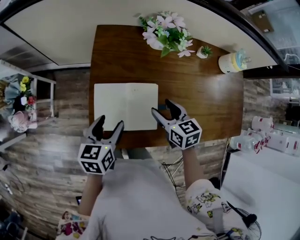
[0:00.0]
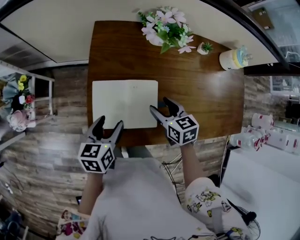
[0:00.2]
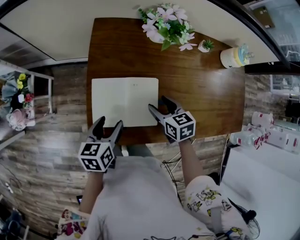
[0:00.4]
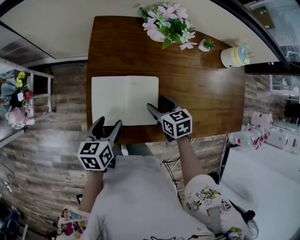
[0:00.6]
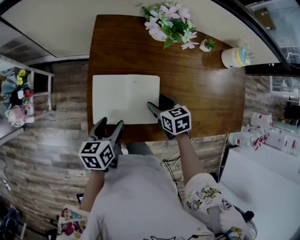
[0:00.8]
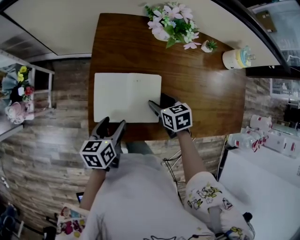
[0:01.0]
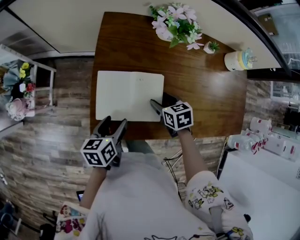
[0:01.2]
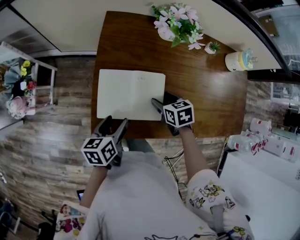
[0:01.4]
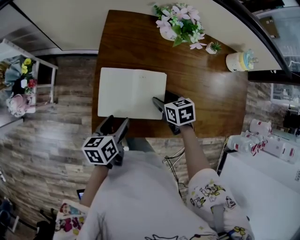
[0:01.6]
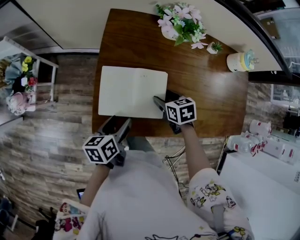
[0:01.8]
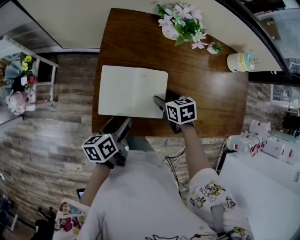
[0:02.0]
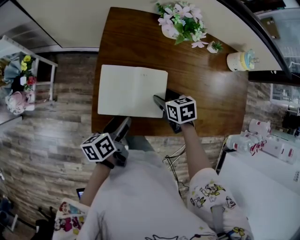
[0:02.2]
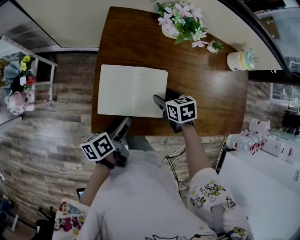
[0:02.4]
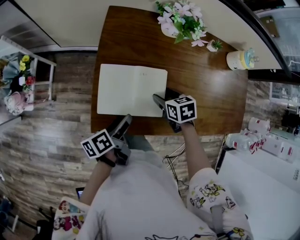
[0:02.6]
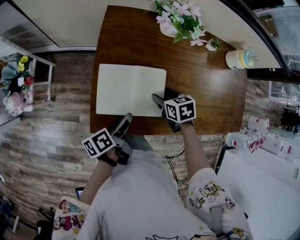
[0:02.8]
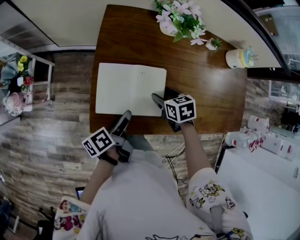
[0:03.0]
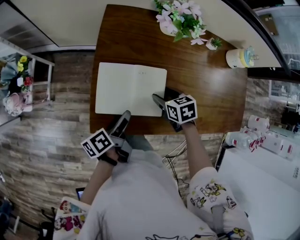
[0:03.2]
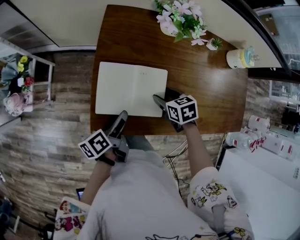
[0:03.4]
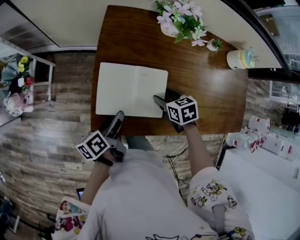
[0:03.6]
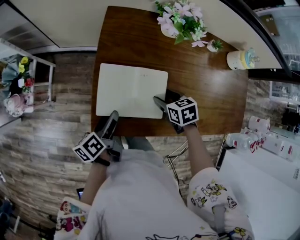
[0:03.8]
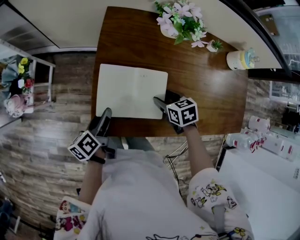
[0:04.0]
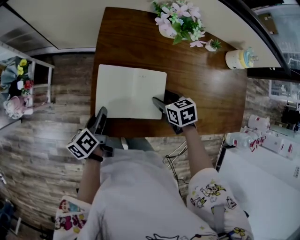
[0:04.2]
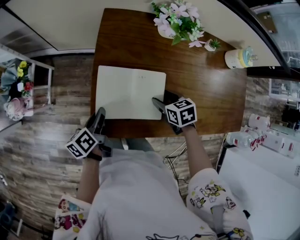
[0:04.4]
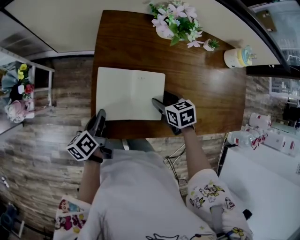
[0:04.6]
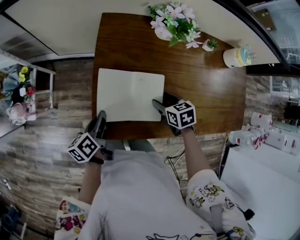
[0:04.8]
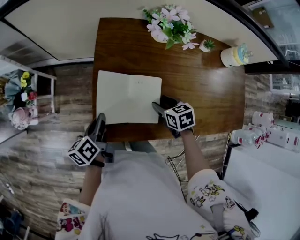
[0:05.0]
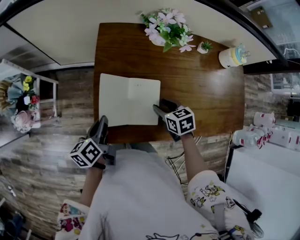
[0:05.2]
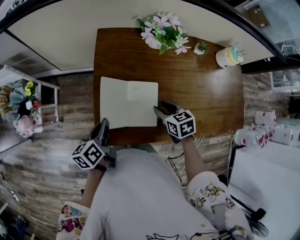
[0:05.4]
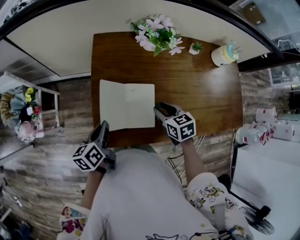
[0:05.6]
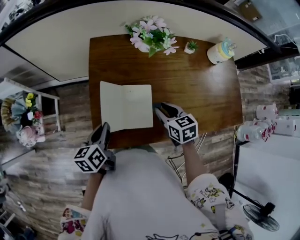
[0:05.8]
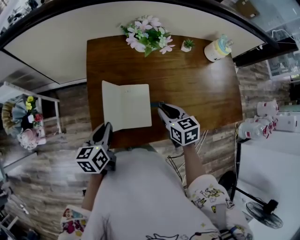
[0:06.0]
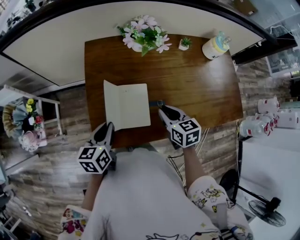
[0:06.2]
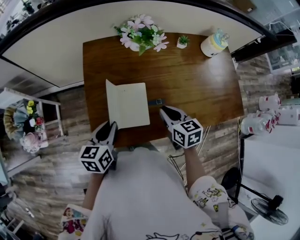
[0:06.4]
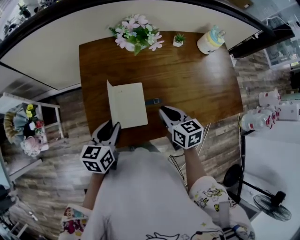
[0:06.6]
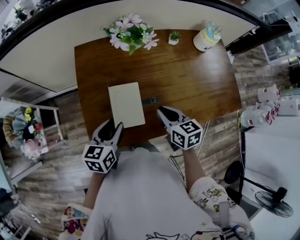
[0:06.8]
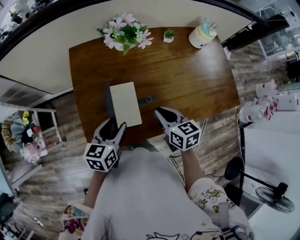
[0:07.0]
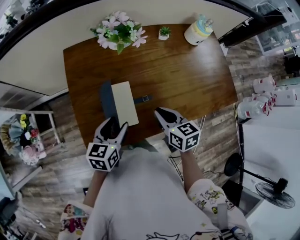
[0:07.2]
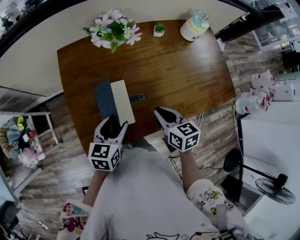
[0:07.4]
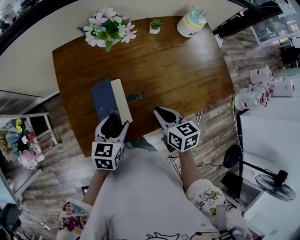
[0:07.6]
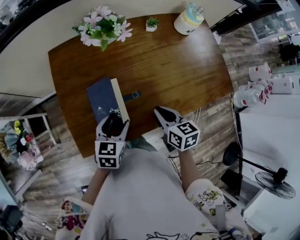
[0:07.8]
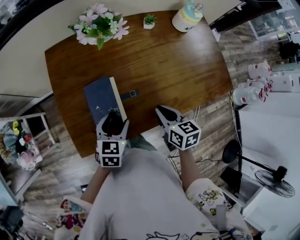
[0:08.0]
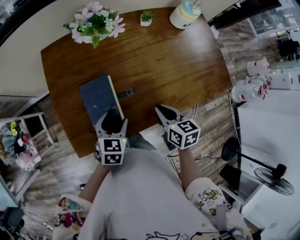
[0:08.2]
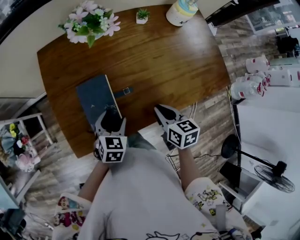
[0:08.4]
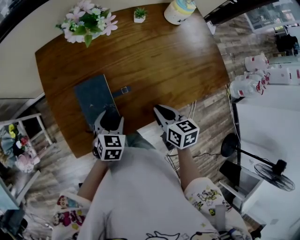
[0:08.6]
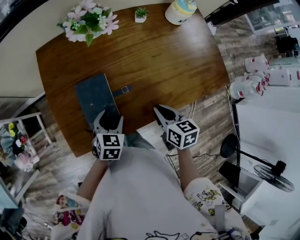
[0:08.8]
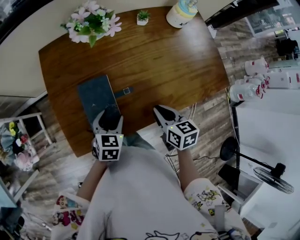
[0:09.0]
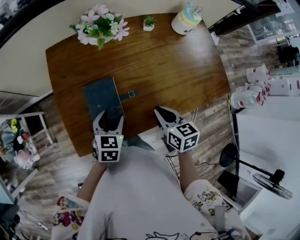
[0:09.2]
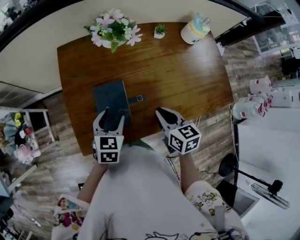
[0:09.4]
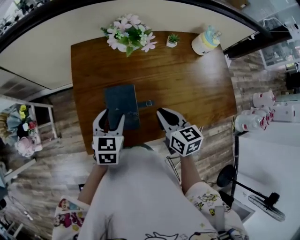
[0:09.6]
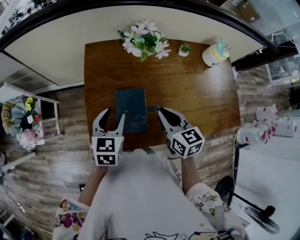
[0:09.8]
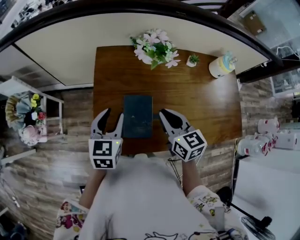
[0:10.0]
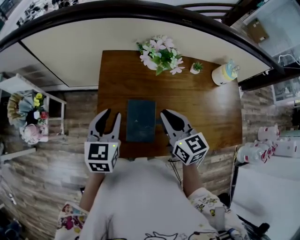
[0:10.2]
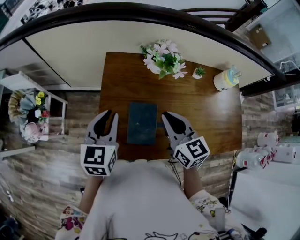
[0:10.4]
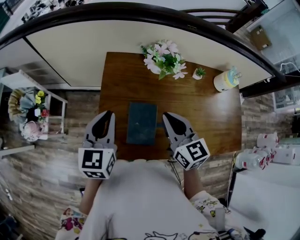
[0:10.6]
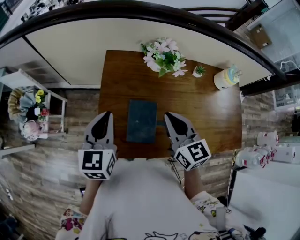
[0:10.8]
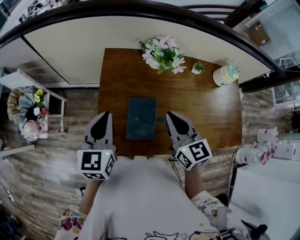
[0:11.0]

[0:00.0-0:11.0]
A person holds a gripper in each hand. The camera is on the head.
0:00.0 to 0:01.6: The left gripper travels backward and downward by some 10 cm, while the right gripper is displaced downward by roughly 10 cm, and rotates some 20 degrees.
0:01.6 to 0:03.2: The left gripper rotates about 30 degrees.
0:03.2 to 0:04.8: The left gripper shifts about 10 cm to the left, changes its angle by approximately 20 degrees, and closes its fingers.
0:04.8 to 0:06.2: The right gripper is displaced upward by approximately 10 cm, turns by approximately 20 degrees, and closes up. The left gripper heads upward and to the right, covering about 10 cm, and changes its angle by roughly 40 degrees.
0:06.2 to 0:07.8: The right gripper goes approximately 10 cm to the right. Meanwhile the left gripper moves to the right, some 15 cm, rotates roughly 30 degrees, and opens.
0:07.8 to 0:09.4: There are only small adjustments of the grippers.
0:09.4 to 0:11.0: The left gripper travels upward and to the left by approximately 20 cm, turns by approximately 30 degrees, and closes up. The right gripper heads upward, to the left and forward, covering about 20 cm, and rotates roughly 30 degrees.

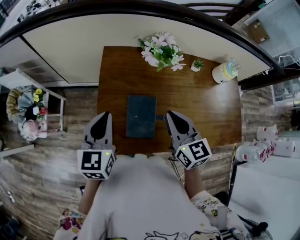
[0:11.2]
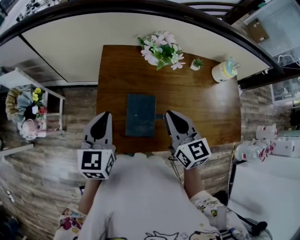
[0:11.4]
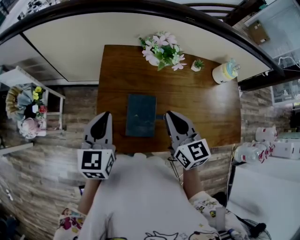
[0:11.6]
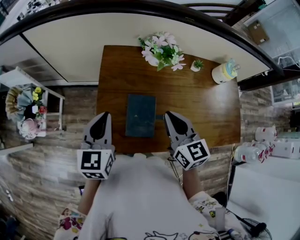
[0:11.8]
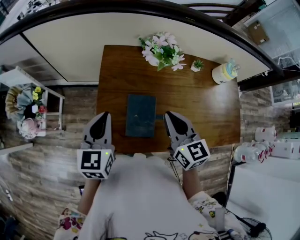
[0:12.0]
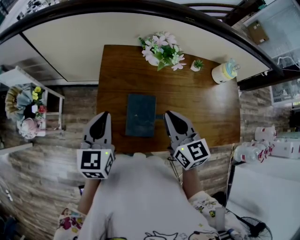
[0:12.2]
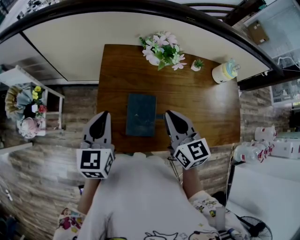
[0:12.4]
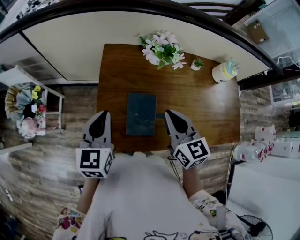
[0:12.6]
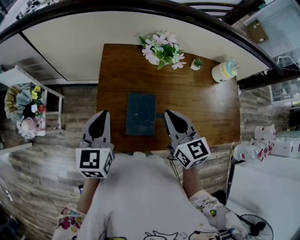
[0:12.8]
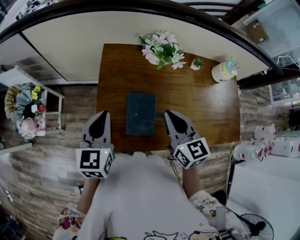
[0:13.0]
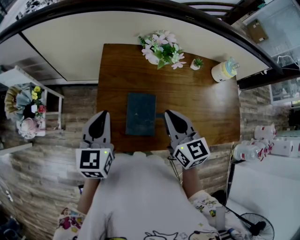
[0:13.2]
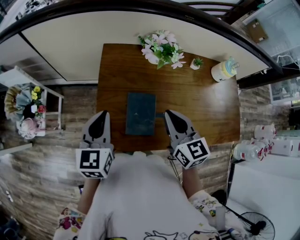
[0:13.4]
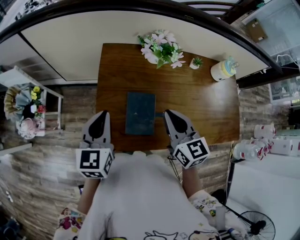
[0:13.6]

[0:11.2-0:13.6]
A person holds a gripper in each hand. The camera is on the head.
0:11.2 to 0:13.6: Both grippers stay about where they are.

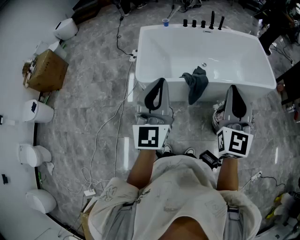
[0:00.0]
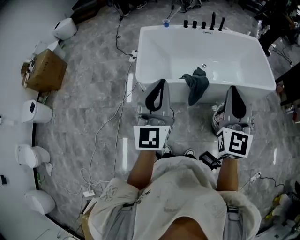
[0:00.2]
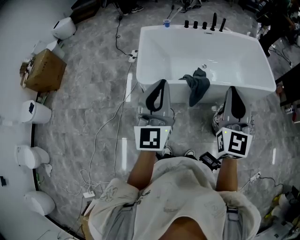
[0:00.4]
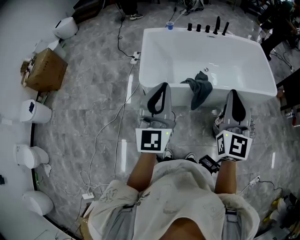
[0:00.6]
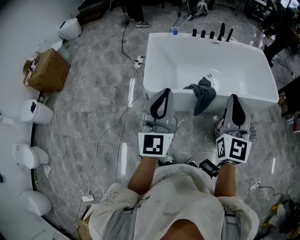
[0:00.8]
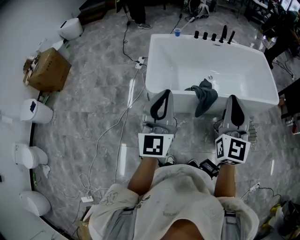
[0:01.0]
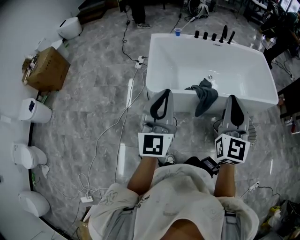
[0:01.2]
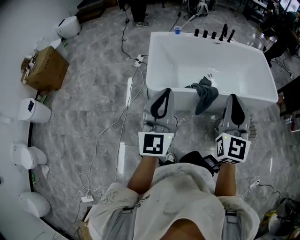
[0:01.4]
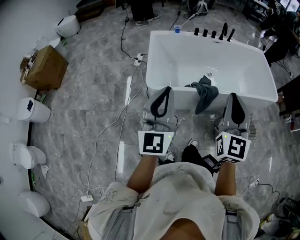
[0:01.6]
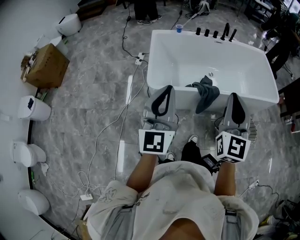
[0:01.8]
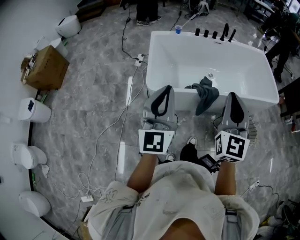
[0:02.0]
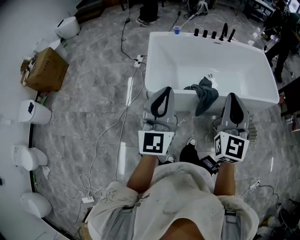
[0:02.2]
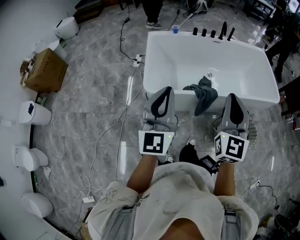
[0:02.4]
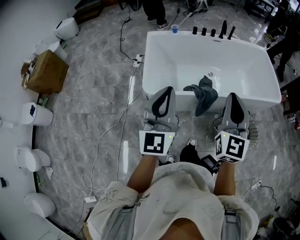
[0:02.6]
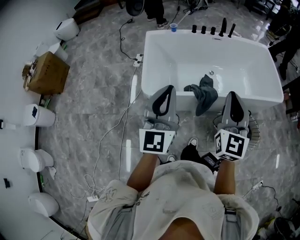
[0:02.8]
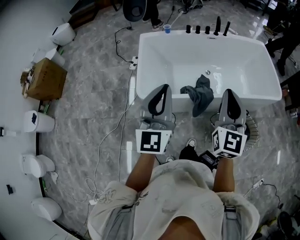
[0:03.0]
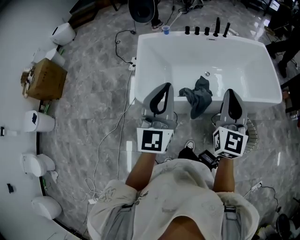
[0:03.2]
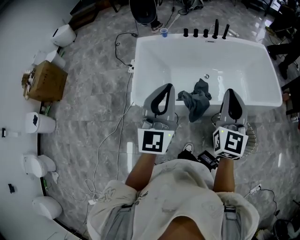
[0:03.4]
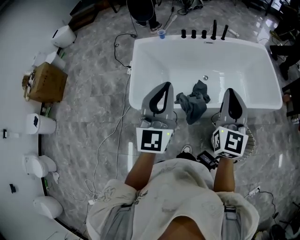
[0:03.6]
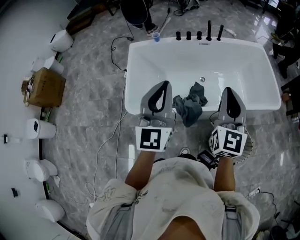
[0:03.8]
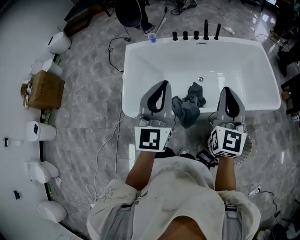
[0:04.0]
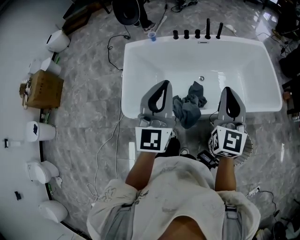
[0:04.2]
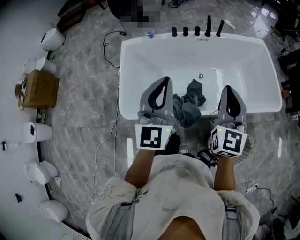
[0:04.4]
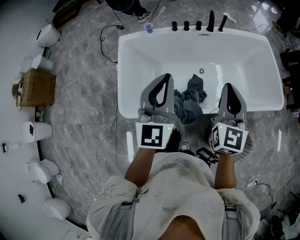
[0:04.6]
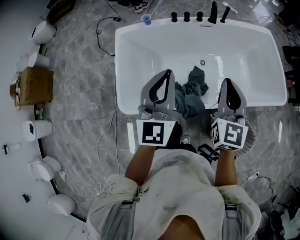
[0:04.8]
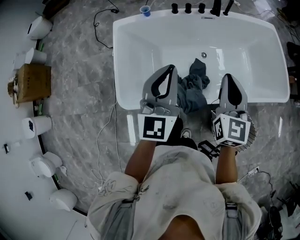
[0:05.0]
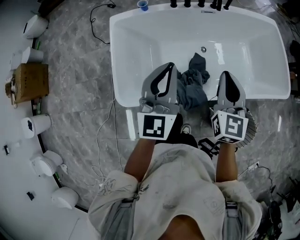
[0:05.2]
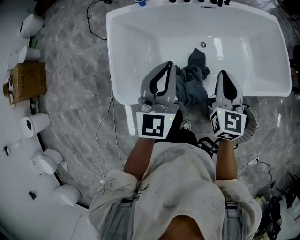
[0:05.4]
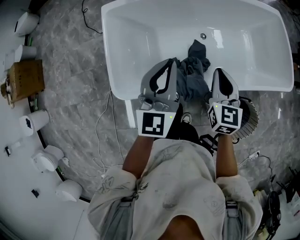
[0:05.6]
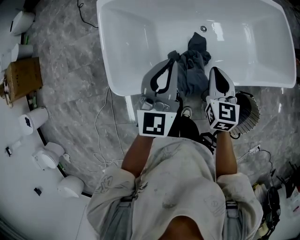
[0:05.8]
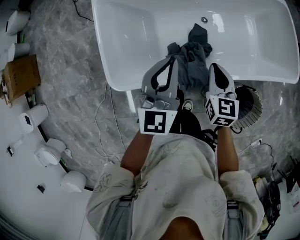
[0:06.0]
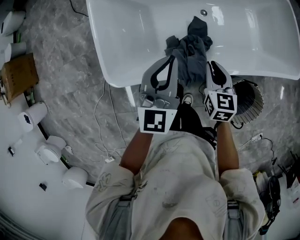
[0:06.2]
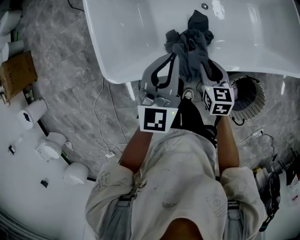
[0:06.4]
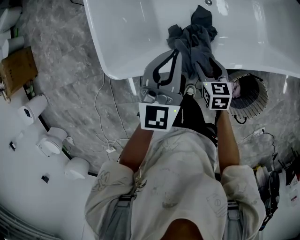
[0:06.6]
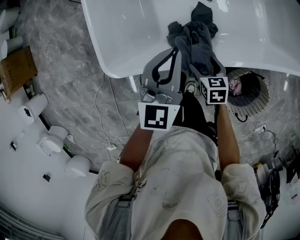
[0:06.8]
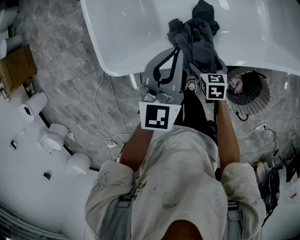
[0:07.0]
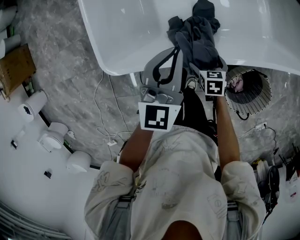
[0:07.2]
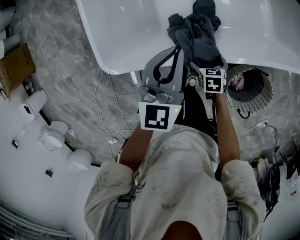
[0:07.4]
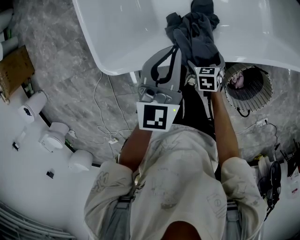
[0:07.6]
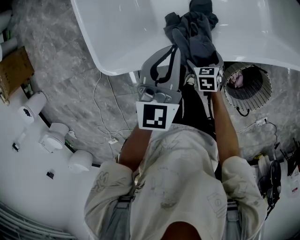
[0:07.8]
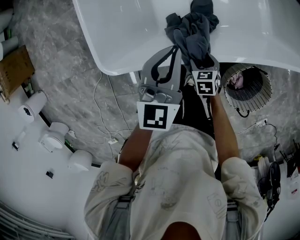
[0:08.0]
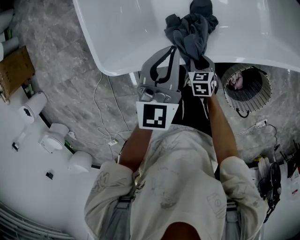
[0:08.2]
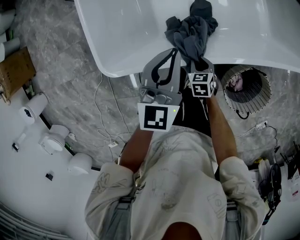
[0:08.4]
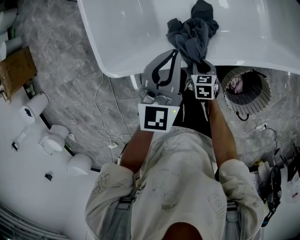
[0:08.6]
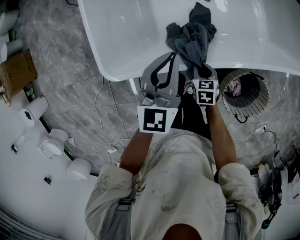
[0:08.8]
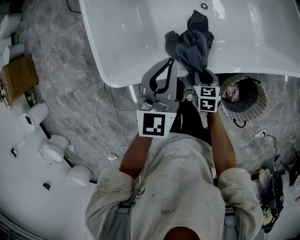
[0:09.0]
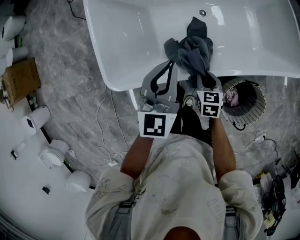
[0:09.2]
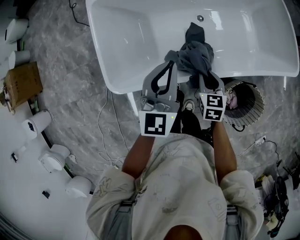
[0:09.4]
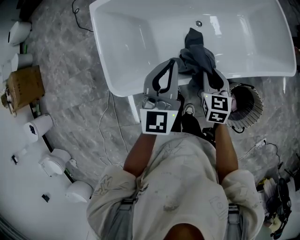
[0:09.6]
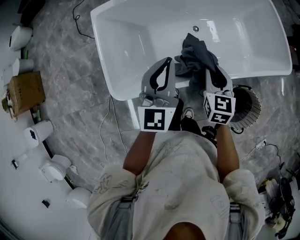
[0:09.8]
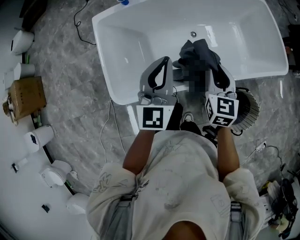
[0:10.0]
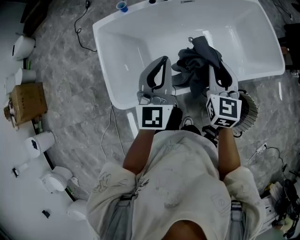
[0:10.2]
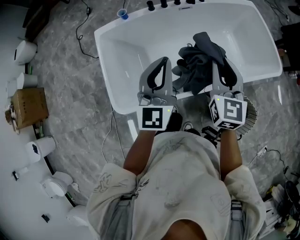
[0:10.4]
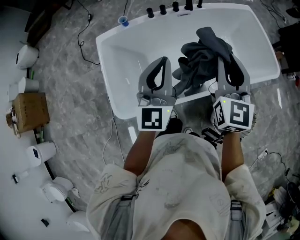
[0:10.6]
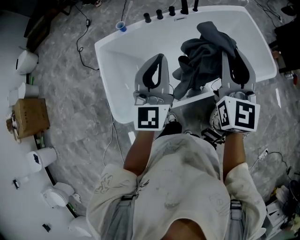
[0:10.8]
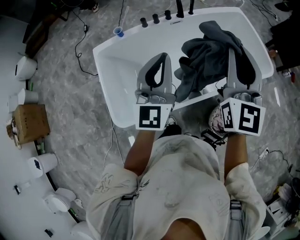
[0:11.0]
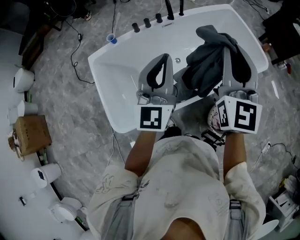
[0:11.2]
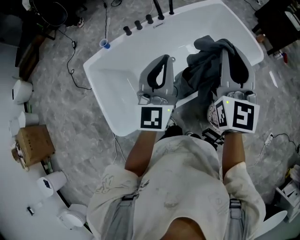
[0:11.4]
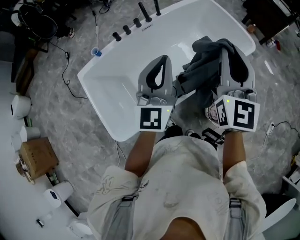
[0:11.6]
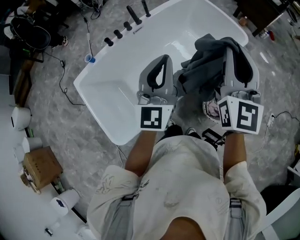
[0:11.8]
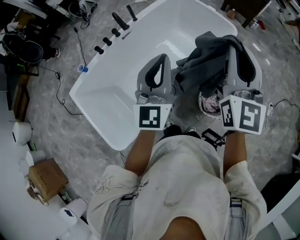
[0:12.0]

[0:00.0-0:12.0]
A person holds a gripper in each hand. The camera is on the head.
0:00.0 to 0:01.6: The two grippers go roughly 10 cm to the left.
0:01.6 to 0:03.0: The grippers both shift forward and to the right by approximately 15 cm.
0:03.0 to 0:04.4: Both grippers travel together forward and to the right, about 25 cm.
0:04.4 to 0:06.0: The right gripper travels downward by roughly 30 cm, and tilts its fingers about 30 degrees downward; the left gripper moves downward and forward, approximately 20 cm.
0:06.0 to 0:07.6: The left gripper moves downward, about 10 cm, while the right gripper heads downward, covering about 25 cm, angles its fingers downward, by about 40 degrees, and opens its fingers.
0:07.6 to 0:09.0: The right gripper moves upward, about 10 cm, and closes.
0:09.0 to 0:10.4: The right gripper travels upward by roughly 40 cm, and points its fingers some 50 degrees further upward. The left gripper is displaced upward by approximately 20 cm.
0:10.4 to 0:12.0: The left gripper moves roughly 20 cm, and turns by approximately 30 degrees. The right gripper shifts by about 25 cm, and changes its angle by some 40 degrees.
